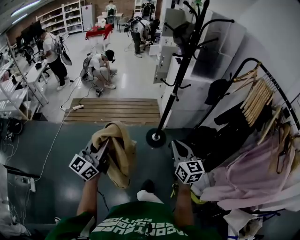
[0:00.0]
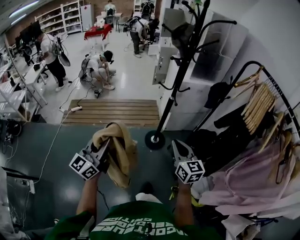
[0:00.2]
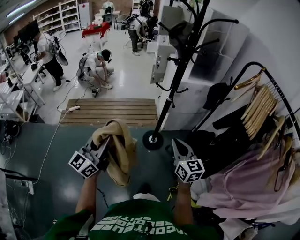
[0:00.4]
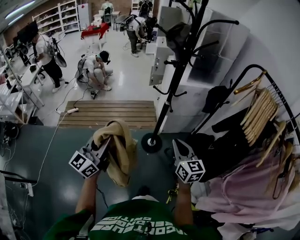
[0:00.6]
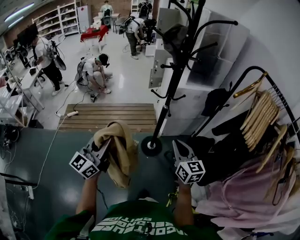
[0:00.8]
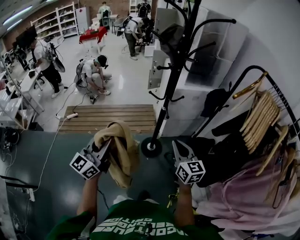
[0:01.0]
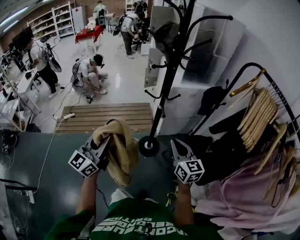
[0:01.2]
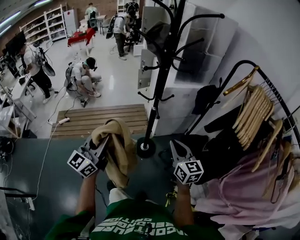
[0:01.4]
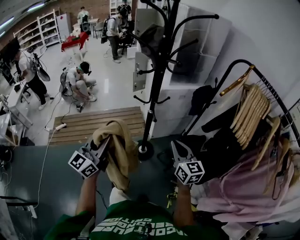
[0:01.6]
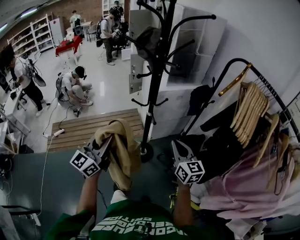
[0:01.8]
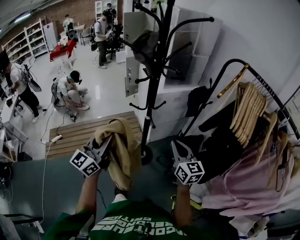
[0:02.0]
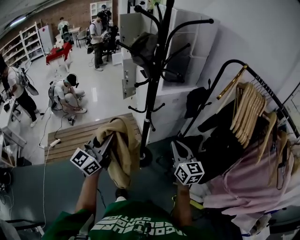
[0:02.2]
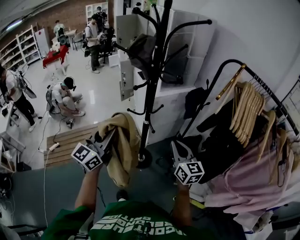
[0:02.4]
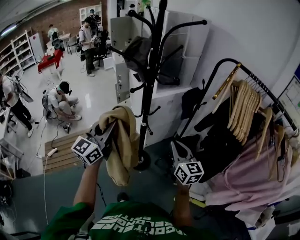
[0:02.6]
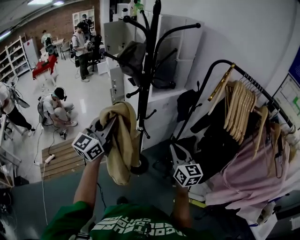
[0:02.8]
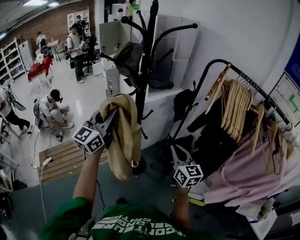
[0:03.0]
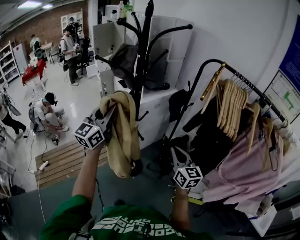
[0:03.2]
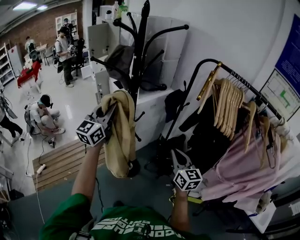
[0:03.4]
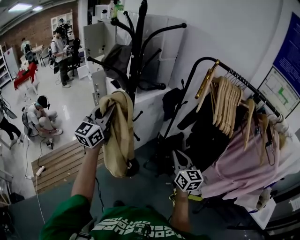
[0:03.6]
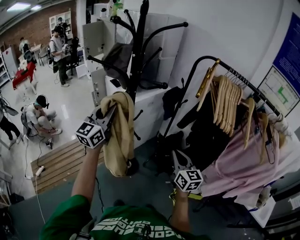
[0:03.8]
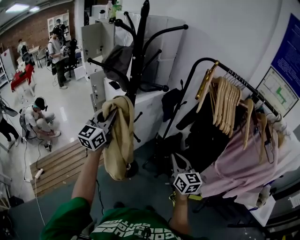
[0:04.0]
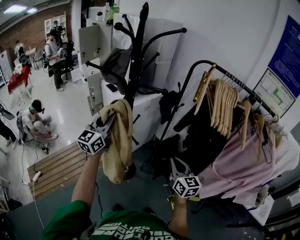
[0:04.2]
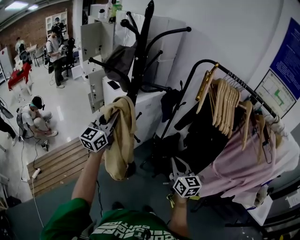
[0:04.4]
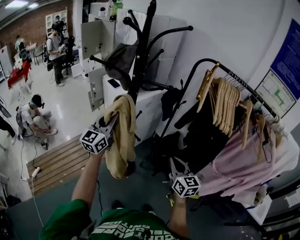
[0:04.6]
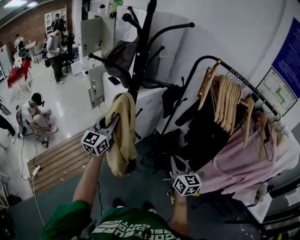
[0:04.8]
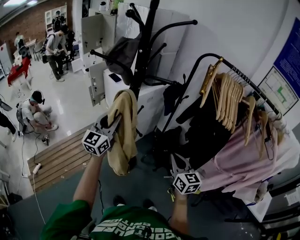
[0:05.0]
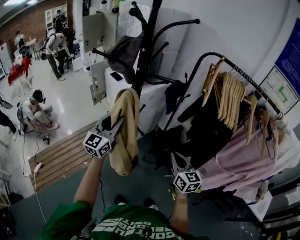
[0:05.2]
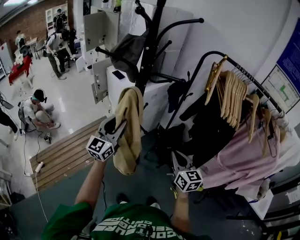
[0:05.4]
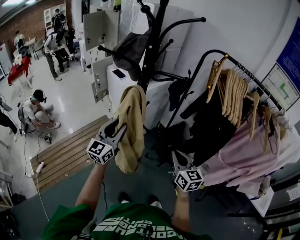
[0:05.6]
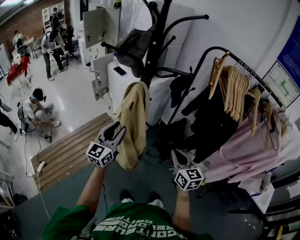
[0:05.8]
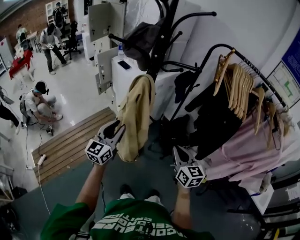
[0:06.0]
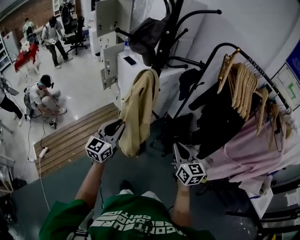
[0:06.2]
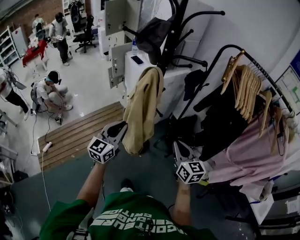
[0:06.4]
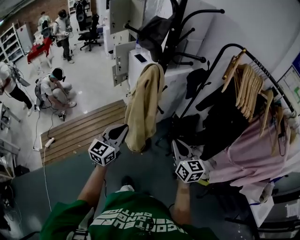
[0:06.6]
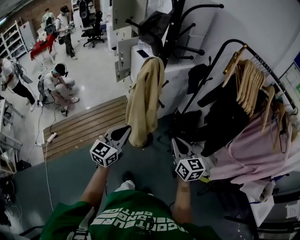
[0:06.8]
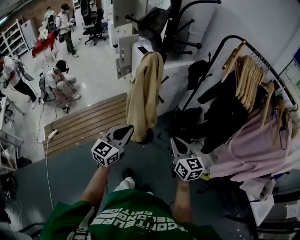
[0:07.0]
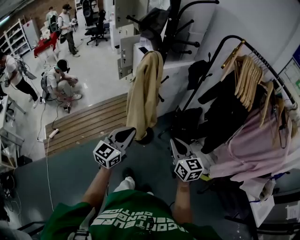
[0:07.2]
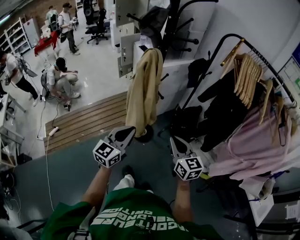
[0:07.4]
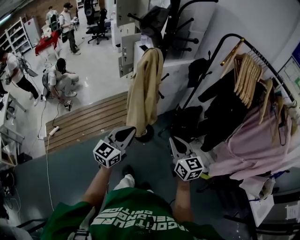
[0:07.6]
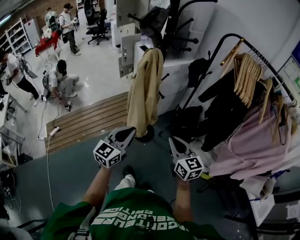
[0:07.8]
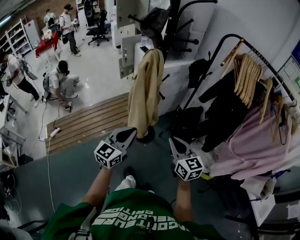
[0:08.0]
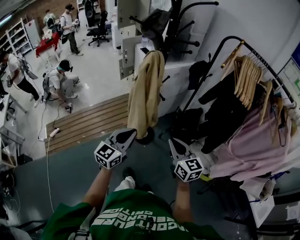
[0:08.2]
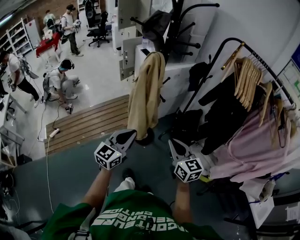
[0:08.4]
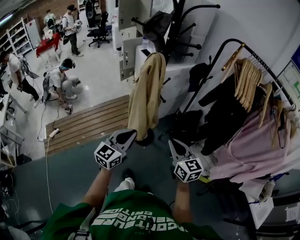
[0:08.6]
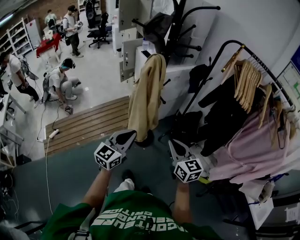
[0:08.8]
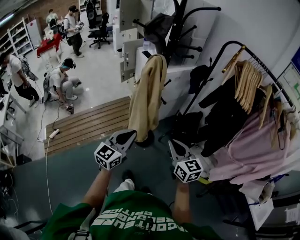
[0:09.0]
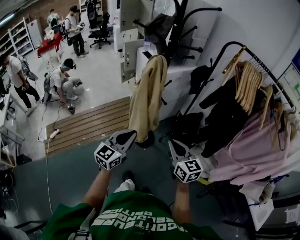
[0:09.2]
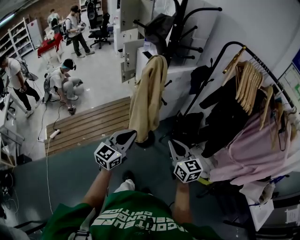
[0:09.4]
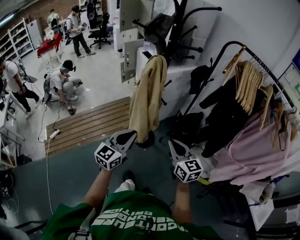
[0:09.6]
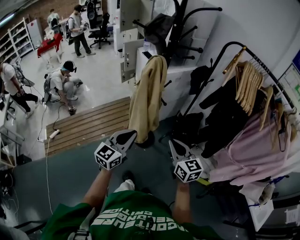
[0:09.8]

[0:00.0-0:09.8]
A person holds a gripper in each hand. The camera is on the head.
0:00.0 to 0:01.4: Both grippers travel together forward and to the right, some 20 cm.
0:01.4 to 0:02.8: The left gripper shifts roughly 20 cm forward and upward, while the right gripper travels forward by approximately 5 cm, and turns by roughly 20 degrees.
0:02.8 to 0:04.2: The left gripper is displaced forward by roughly 10 cm, while the right gripper shifts by some 5 cm.
0:04.2 to 0:05.6: The right gripper heads to the left, covering roughly 5 cm. Meanwhile the left gripper shifts about 10 cm downward and backward.
0:05.6 to 0:07.0: The left gripper travels backward by approximately 20 cm, and closes; the right gripper goes approximately 10 cm backward.
0:07.0 to 0:09.8: The grippers make only small movements.

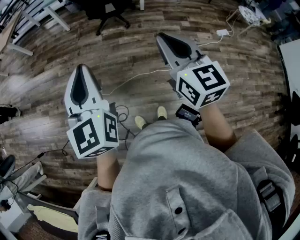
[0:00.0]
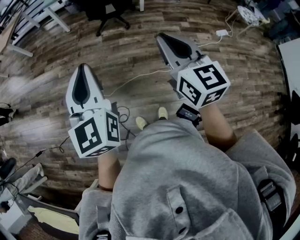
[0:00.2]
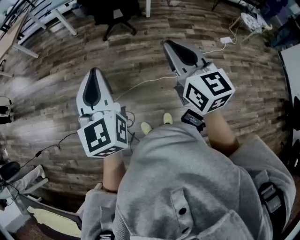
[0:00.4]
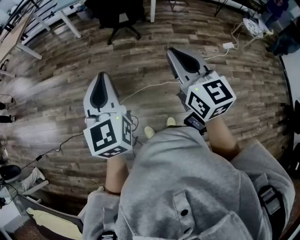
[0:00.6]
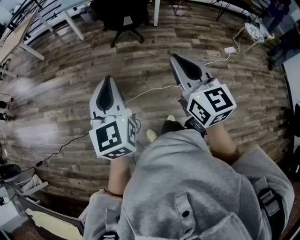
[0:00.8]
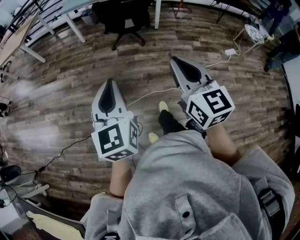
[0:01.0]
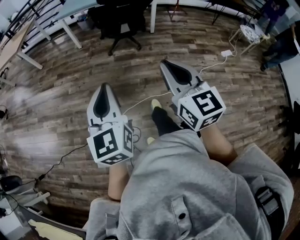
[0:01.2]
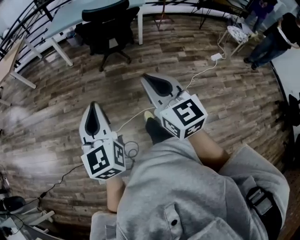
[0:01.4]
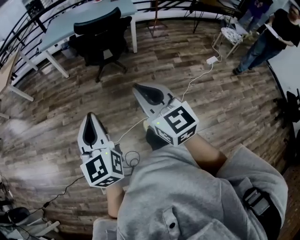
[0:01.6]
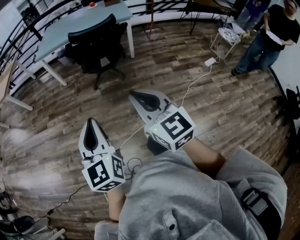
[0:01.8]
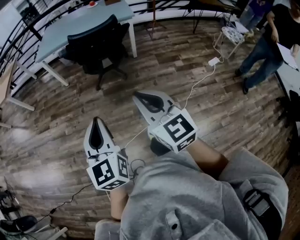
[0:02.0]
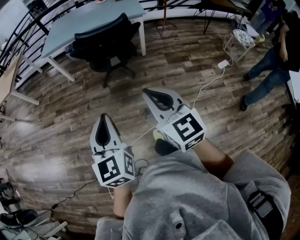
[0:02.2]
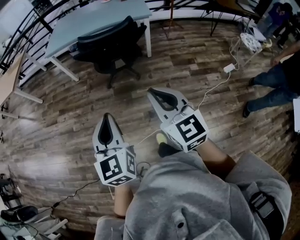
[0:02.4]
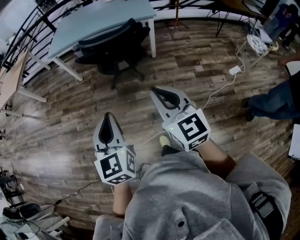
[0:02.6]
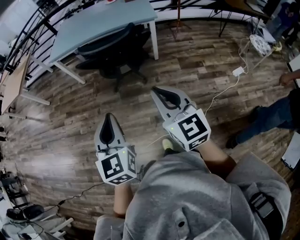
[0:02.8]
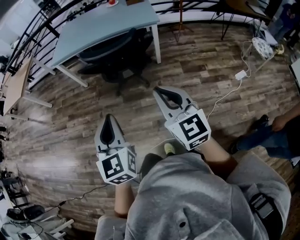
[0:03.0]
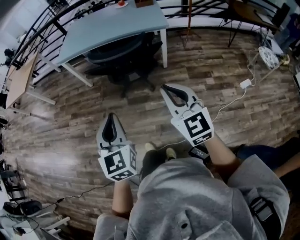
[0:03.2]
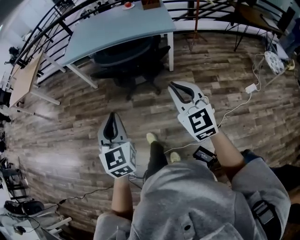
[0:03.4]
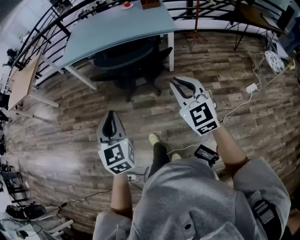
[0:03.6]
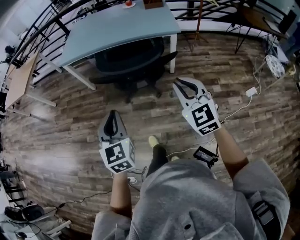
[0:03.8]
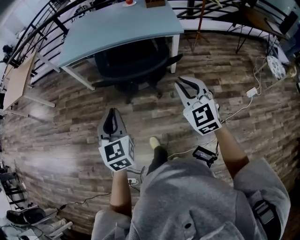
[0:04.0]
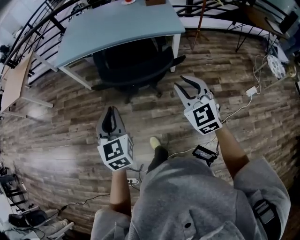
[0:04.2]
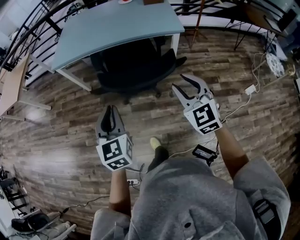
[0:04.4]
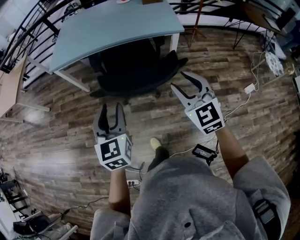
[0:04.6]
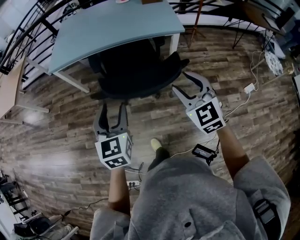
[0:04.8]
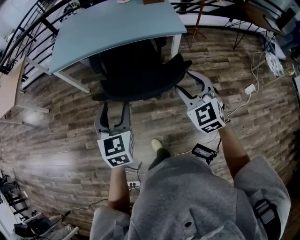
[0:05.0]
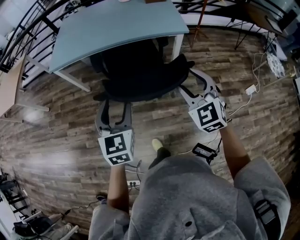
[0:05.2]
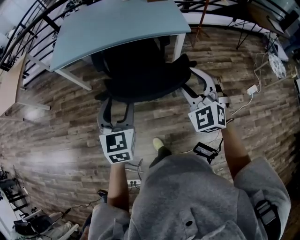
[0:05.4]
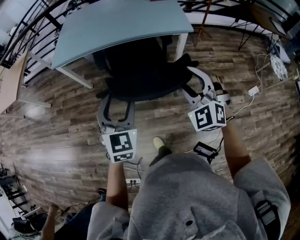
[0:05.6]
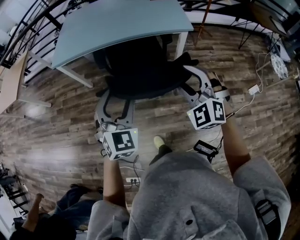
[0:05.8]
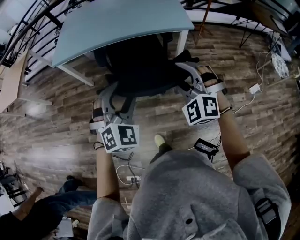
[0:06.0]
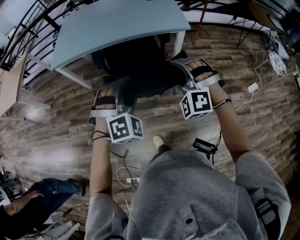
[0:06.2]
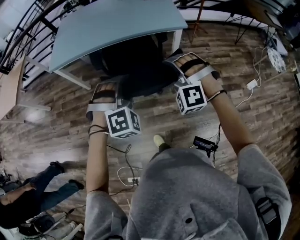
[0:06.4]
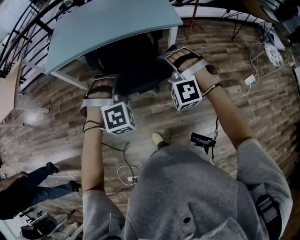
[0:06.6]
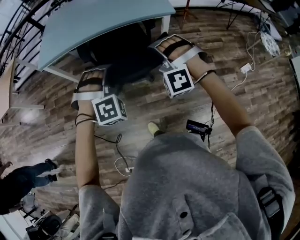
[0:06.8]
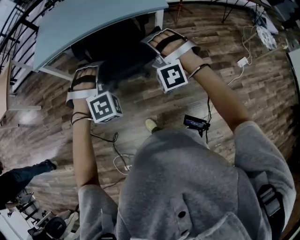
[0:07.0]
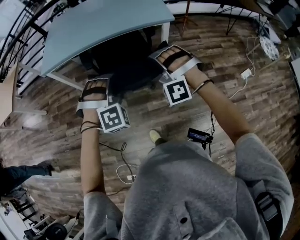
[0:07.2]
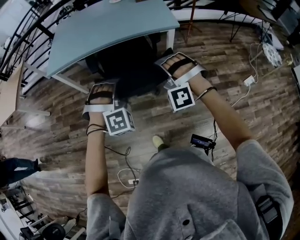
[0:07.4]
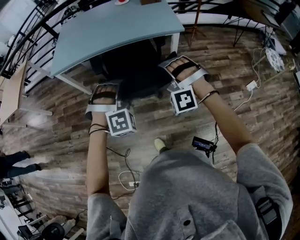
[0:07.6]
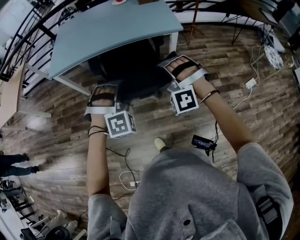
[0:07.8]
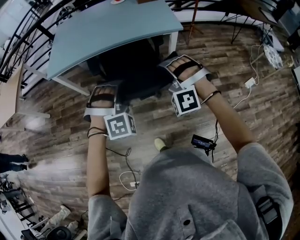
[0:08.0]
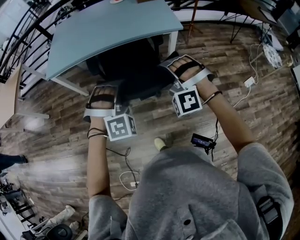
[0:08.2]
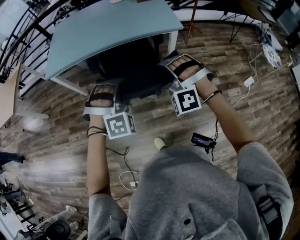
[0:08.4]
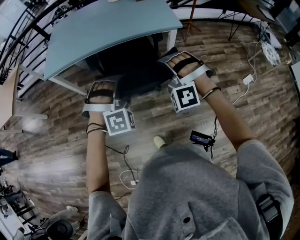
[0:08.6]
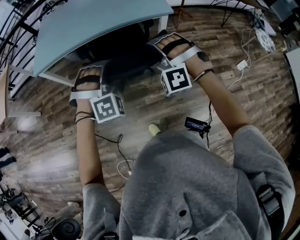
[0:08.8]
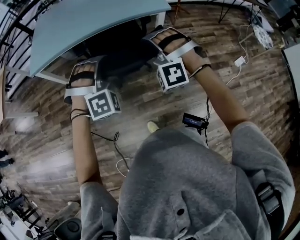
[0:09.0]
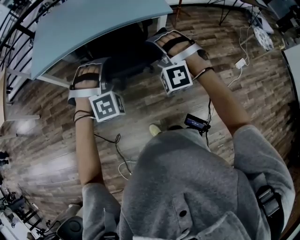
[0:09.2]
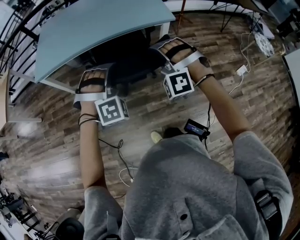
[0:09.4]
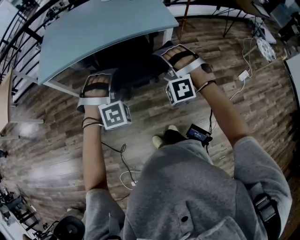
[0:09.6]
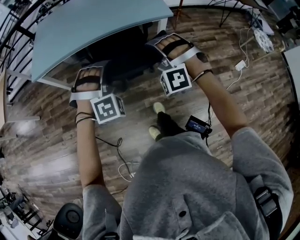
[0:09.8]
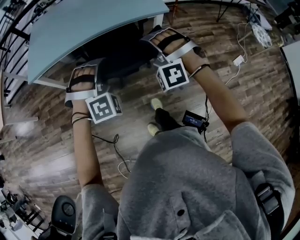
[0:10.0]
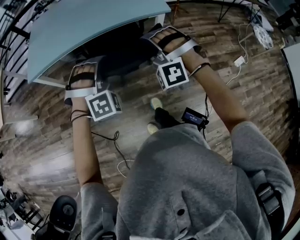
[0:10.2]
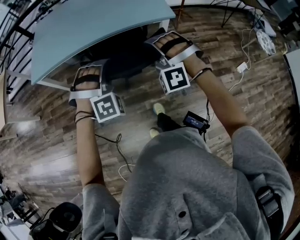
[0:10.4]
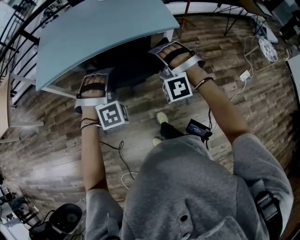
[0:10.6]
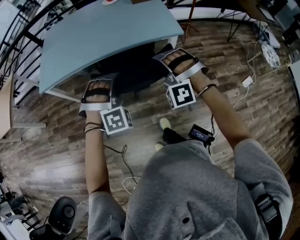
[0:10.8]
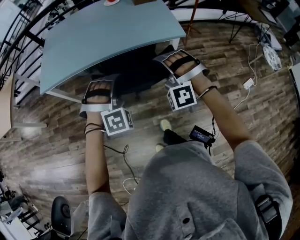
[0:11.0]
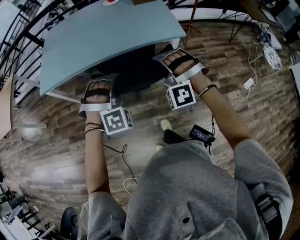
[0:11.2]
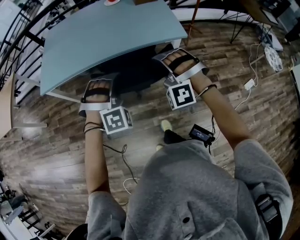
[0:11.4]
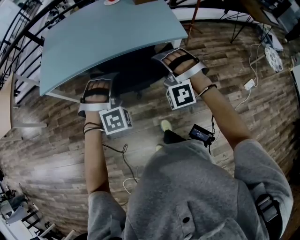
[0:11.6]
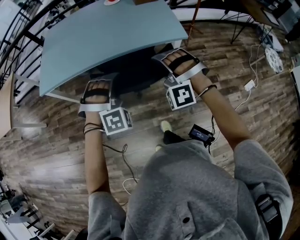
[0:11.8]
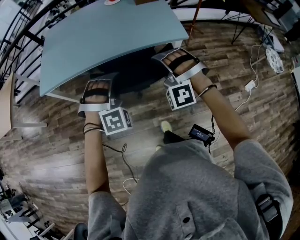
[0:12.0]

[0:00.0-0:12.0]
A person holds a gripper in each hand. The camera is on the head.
0:00.0 to 0:01.6: The left gripper moves forward and to the left, approximately 15 cm; the right gripper heads to the left and forward, covering roughly 15 cm.
0:01.6 to 0:03.0: The two grippers go approximately 30 cm forward and to the right.
0:03.0 to 0:04.4: Both grippers travel together forward, some 30 cm. The right gripper rotates some 20 degrees, and opens its fingers.
0:04.4 to 0:06.0: Both grippers travel together forward, some 10 cm. The right gripper turns by roughly 40 degrees; the left gripper rotates around the line of its fingers by some 50 degrees, clockwise from behind, and opens.
0:06.0 to 0:07.6: The right gripper rotates roughly 30 degrees, and closes. Meanwhile the left gripper swivels some 40 degrees, and closes up.
0:07.6 to 0:09.0: Both grippers move forward, some 5 cm.
0:09.0 to 0:10.4: The two grippers go some 5 cm forward.
0:10.4 to 0:12.0: Both grippers travel together forward, about 10 cm.

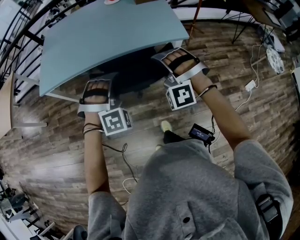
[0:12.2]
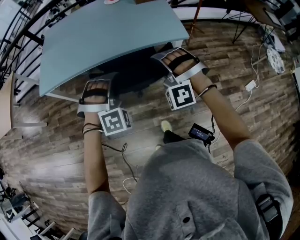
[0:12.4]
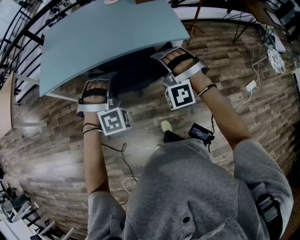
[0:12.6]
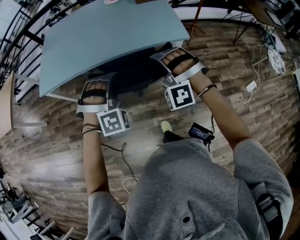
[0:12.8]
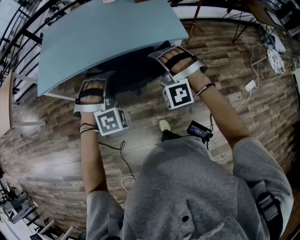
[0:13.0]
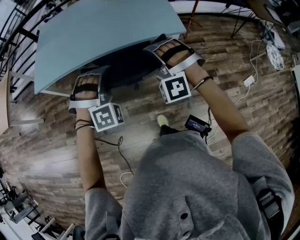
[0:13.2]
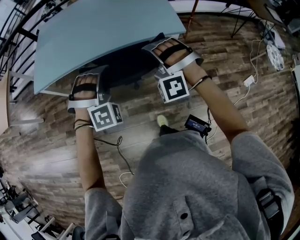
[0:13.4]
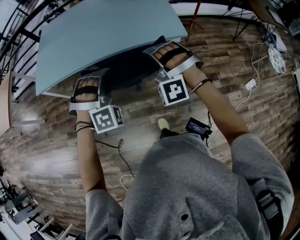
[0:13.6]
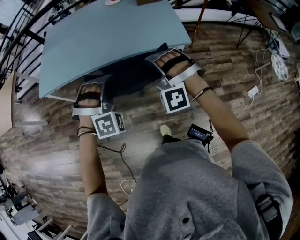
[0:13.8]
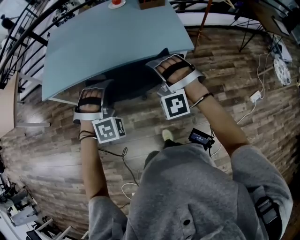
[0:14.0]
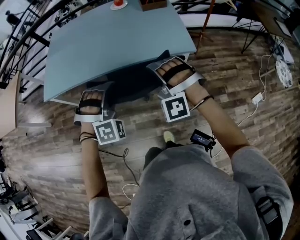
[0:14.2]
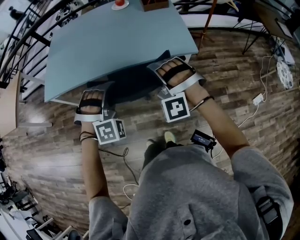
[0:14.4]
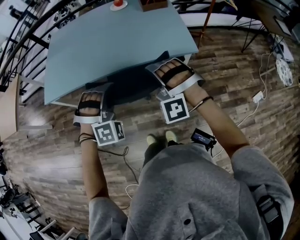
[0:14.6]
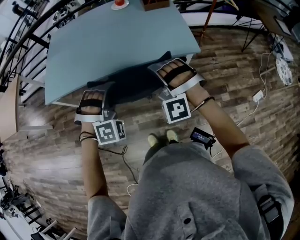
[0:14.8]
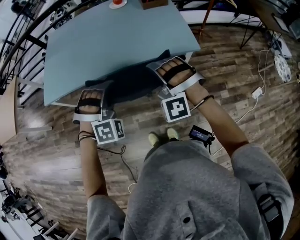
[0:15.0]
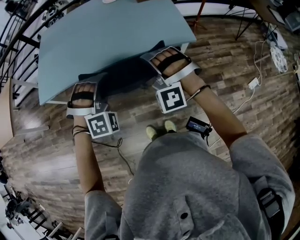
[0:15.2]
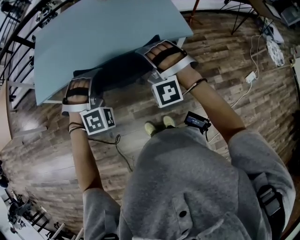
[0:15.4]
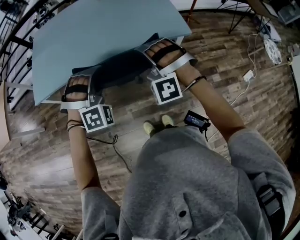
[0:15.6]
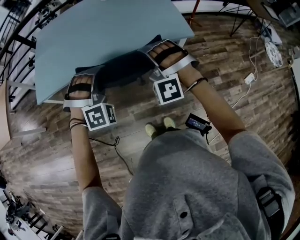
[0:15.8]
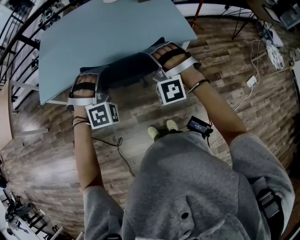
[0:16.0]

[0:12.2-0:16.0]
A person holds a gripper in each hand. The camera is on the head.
0:12.2 to 0:13.4: The grippers move only a little.
0:13.4 to 0:14.8: The right gripper moves approximately 5 cm. Meanwhile the left gripper moves forward, about 5 cm.
0:14.8 to 0:16.0: Both grippers travel together to the left, some 5 cm.
